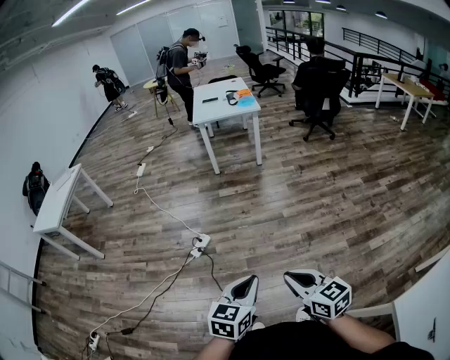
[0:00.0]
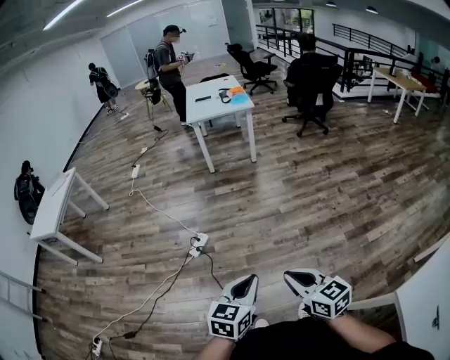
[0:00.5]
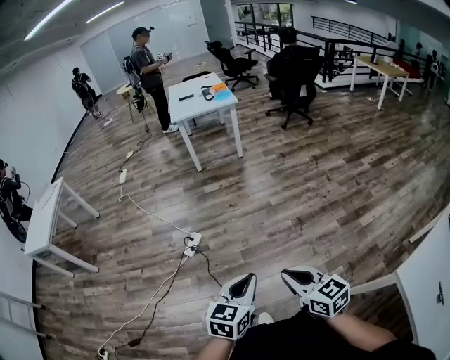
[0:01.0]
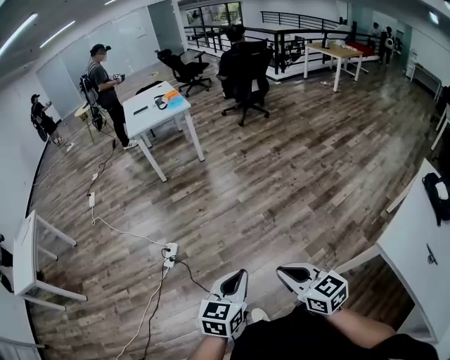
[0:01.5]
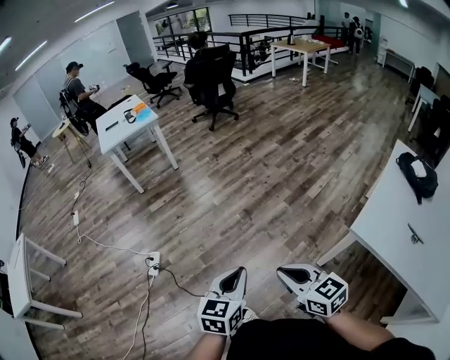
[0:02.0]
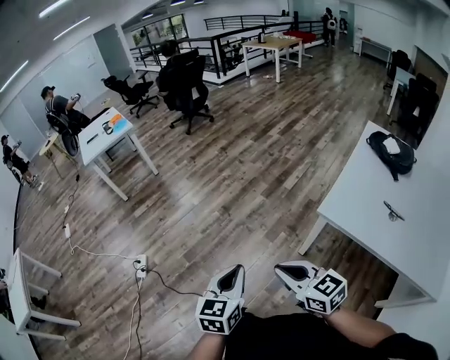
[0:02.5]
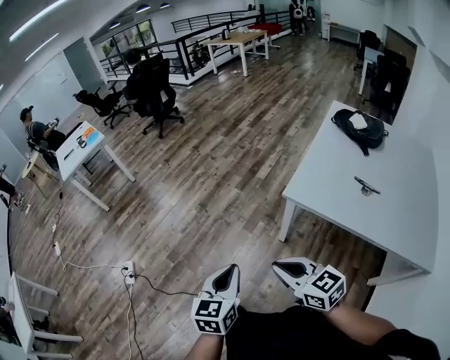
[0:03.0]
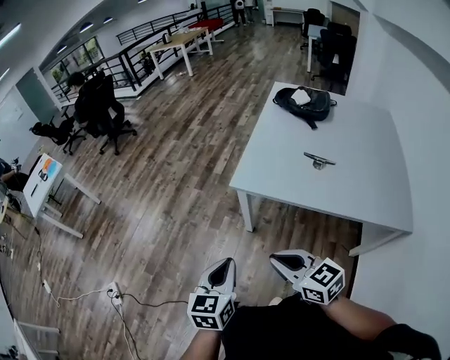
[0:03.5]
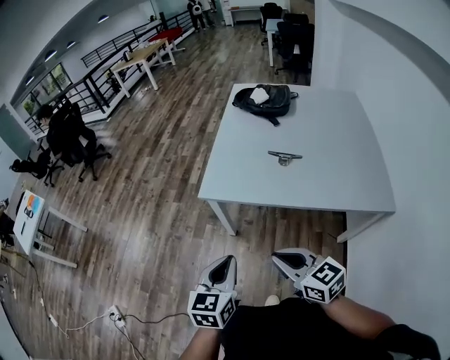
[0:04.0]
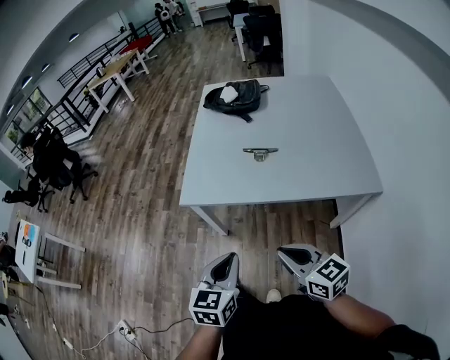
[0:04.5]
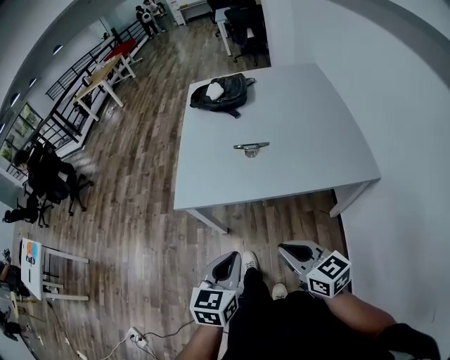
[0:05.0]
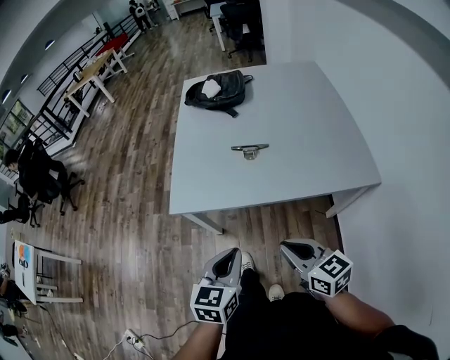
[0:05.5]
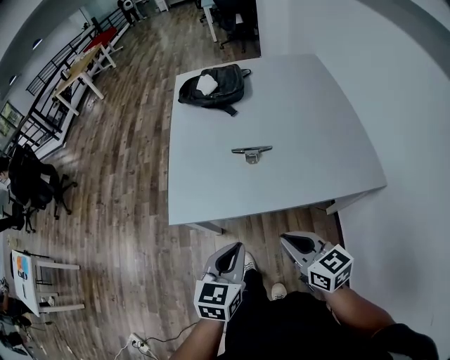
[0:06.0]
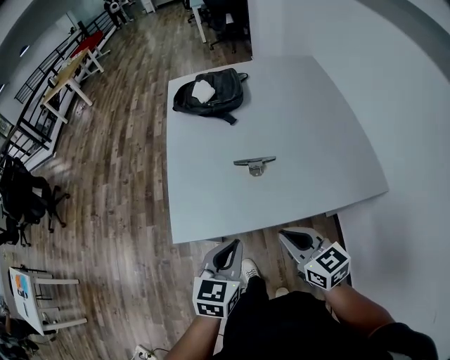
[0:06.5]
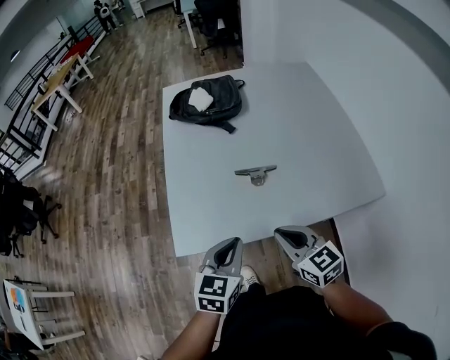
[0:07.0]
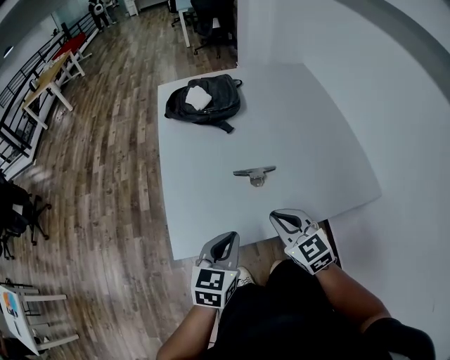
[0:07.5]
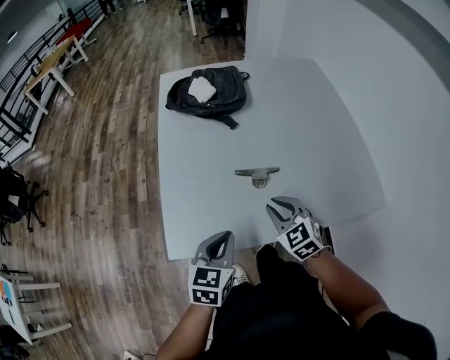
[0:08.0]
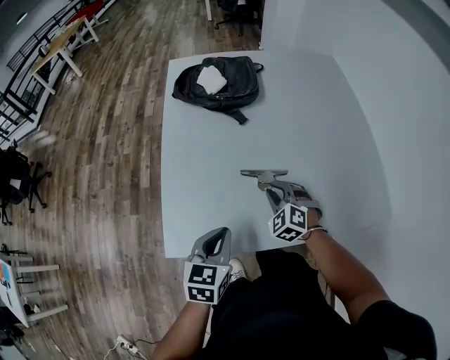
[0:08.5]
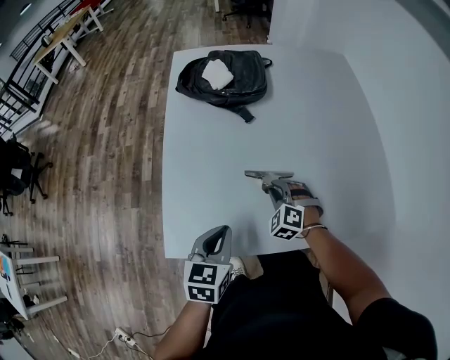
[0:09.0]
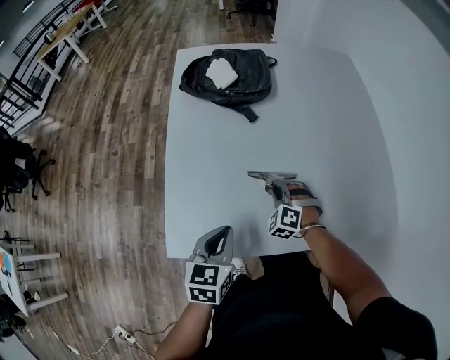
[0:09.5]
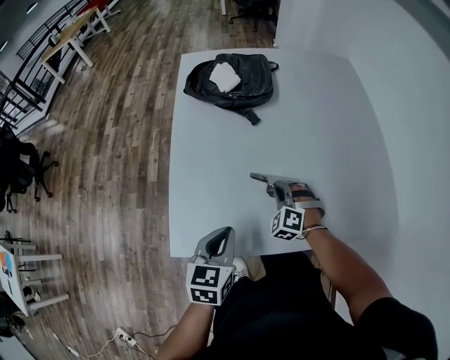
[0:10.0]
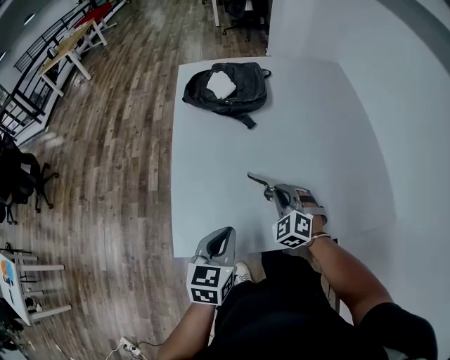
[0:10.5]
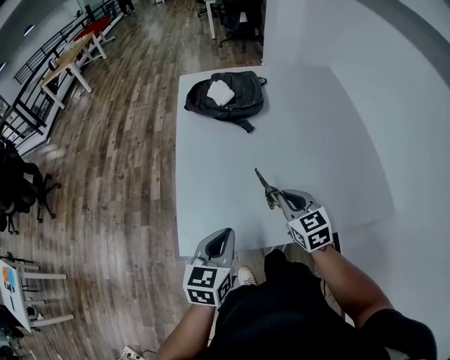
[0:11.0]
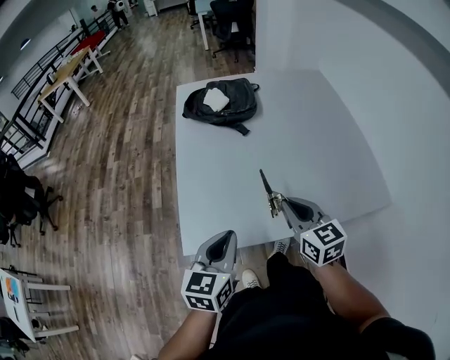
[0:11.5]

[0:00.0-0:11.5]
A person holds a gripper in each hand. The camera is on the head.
0:00.0 to 0:02.0: The right gripper changes place by roughly 20 cm, and changes its angle by some 30 degrees. Meanwhile the left gripper changes place by about 15 cm, and rotates about 30 degrees.
0:02.0 to 0:04.0: The two grippers travel together, roughly 50 cm. The left gripper swivels approximately 40 degrees. Meanwhile the right gripper turns by about 40 degrees.
0:04.0 to 0:06.0: Both grippers travel together forward and to the right, about 15 cm. The left gripper swivels some 20 degrees. The right gripper rotates about 20 degrees.
0:06.0 to 0:07.5: The two grippers go some 15 cm forward and to the left. The right gripper changes its angle by roughly 30 degrees.
0:07.5 to 0:09.5: The right gripper goes about 25 cm downward and forward, and twists roughly 50 degrees counterclockwise, seen from behind. Meanwhile the left gripper moves forward and downward, about 10 cm.
0:09.5 to 0:11.5: The right gripper heads upward and backward, covering some 25 cm, and rotates around the line of its fingers by some 70 degrees, clockwise from behind; the left gripper is displaced upward and backward by some 15 cm.

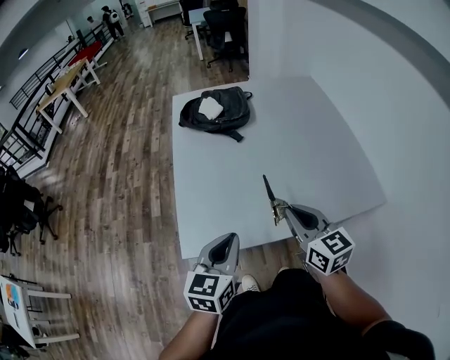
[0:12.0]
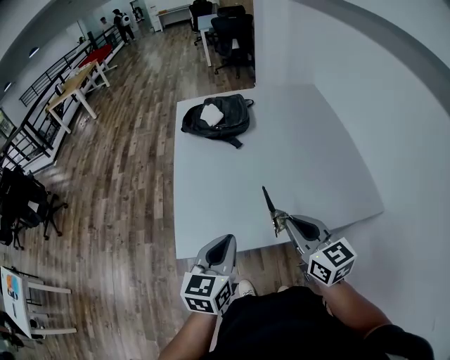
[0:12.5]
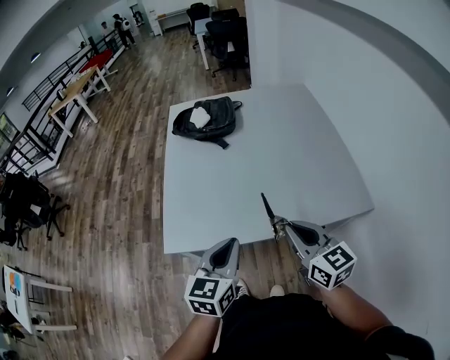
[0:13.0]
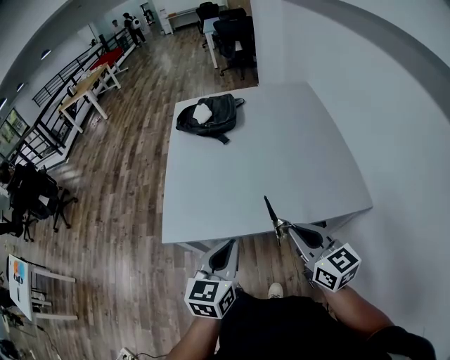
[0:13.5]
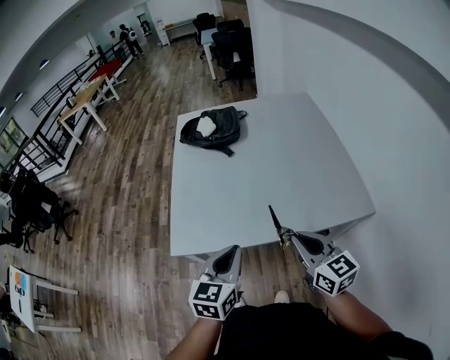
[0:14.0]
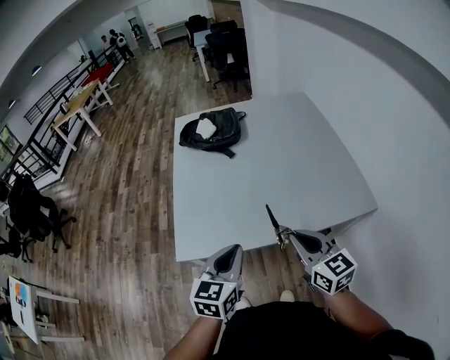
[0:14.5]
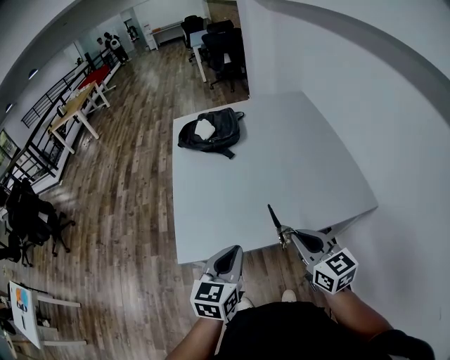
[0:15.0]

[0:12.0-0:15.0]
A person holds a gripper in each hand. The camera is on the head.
0:12.0 to 0:13.5: The grippers both shift to the right and backward by roughly 15 cm.
0:13.5 to 0:15.0: Both grippers move to the left, some 5 cm.

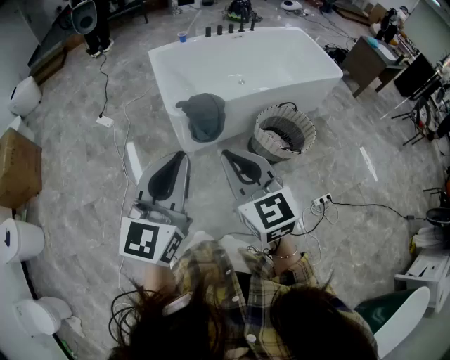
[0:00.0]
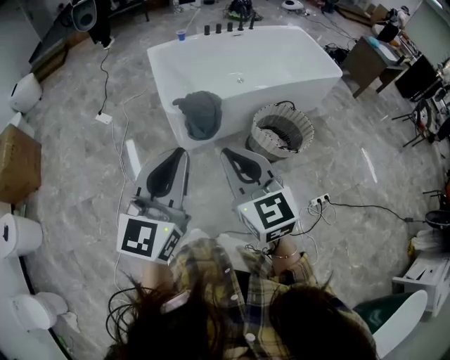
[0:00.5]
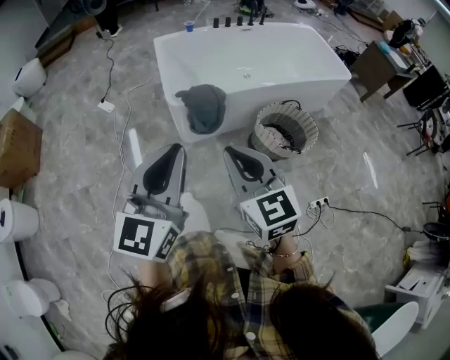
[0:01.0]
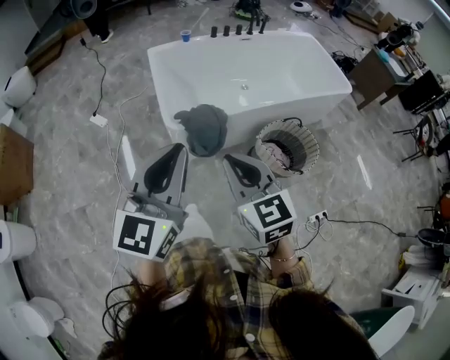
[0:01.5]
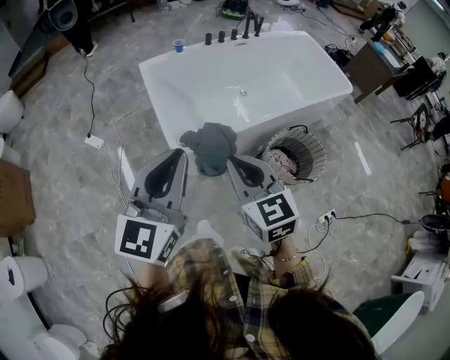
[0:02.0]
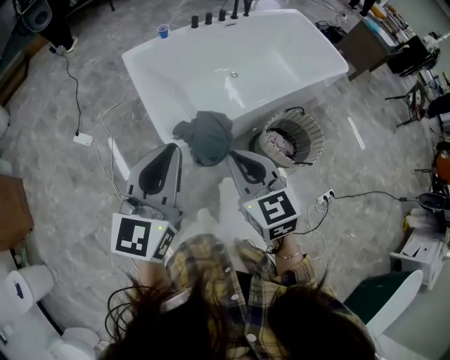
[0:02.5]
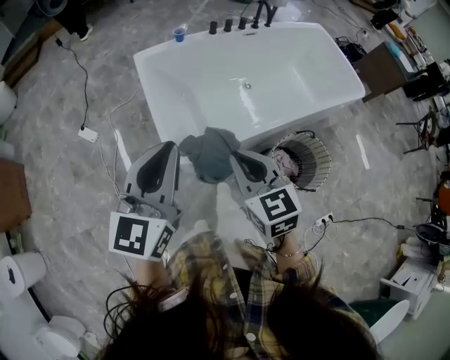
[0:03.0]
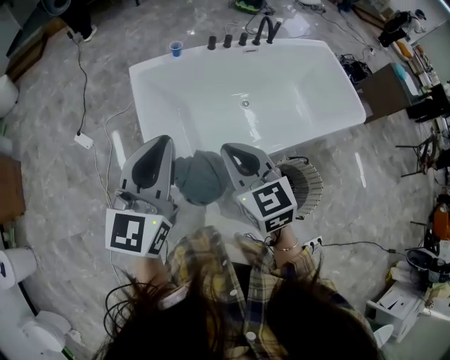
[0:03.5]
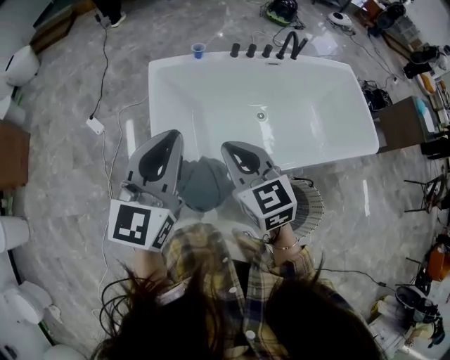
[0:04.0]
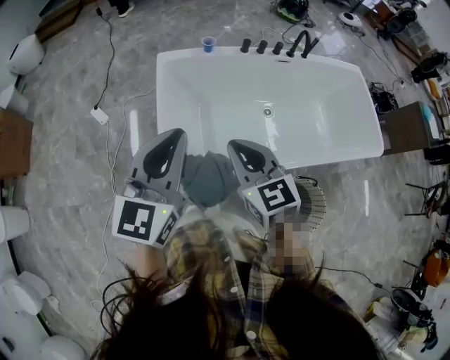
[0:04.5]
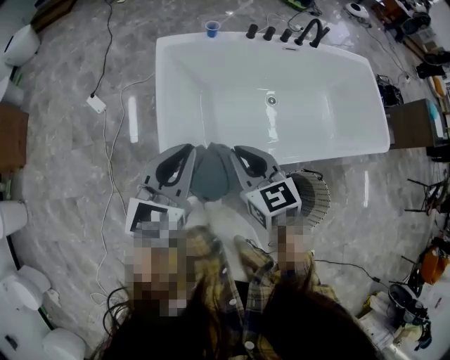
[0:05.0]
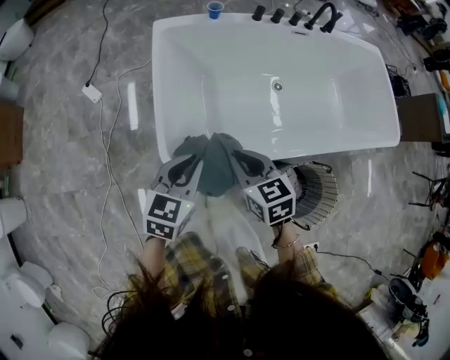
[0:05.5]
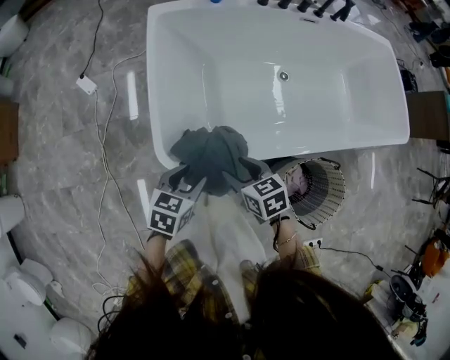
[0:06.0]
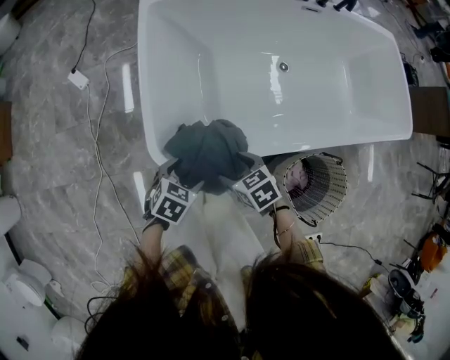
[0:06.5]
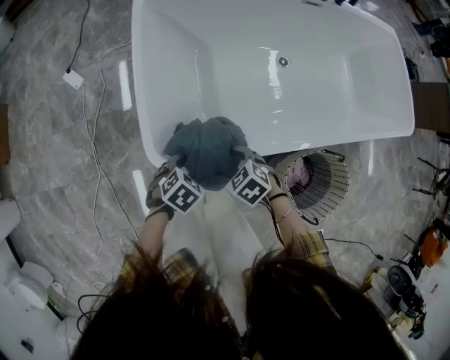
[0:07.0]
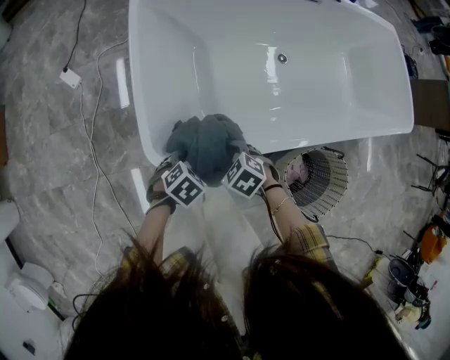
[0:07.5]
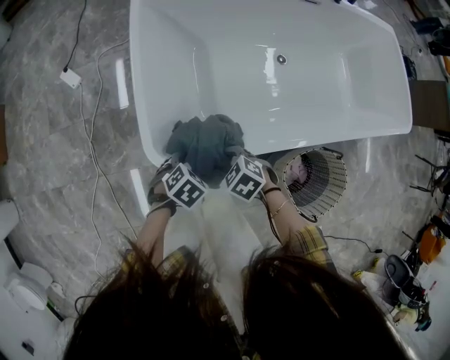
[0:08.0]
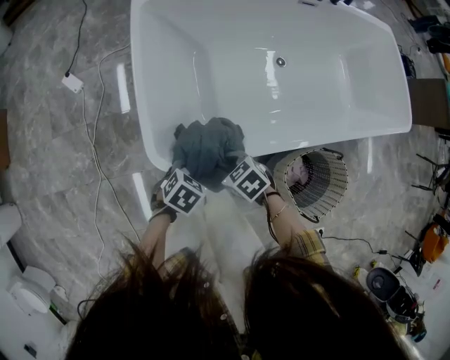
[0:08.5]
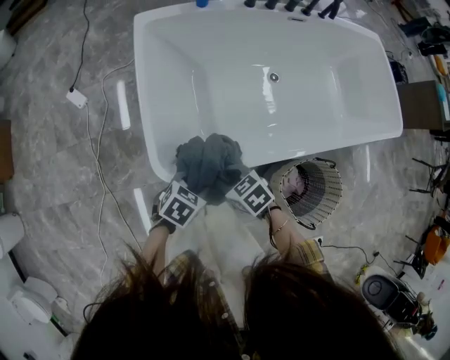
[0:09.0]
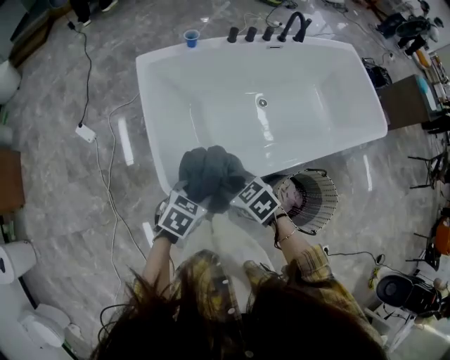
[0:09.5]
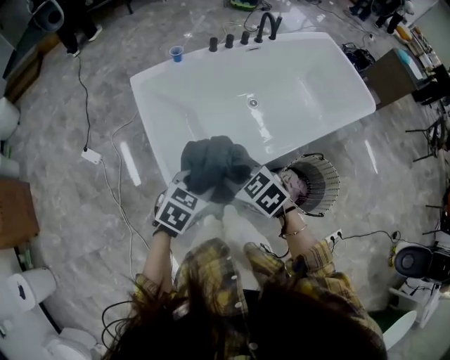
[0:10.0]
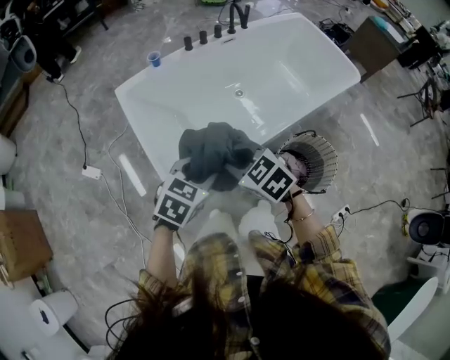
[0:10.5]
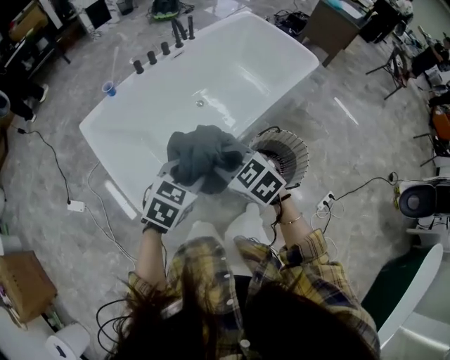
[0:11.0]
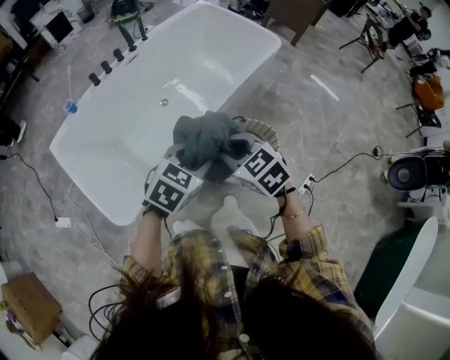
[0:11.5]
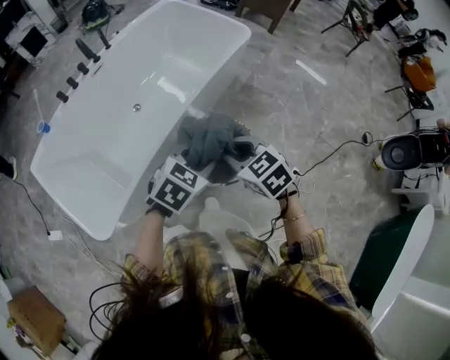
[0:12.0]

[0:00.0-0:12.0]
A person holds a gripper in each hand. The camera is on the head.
0:00.0 to 0:02.0: Both grippers move forward, roughly 25 cm.
0:02.0 to 0:04.0: The two grippers go some 30 cm forward.
0:04.0 to 0:06.0: Both grippers travel together downward, about 40 cm. The left gripper tips its fingers downward by roughly 50 degrees, and opens its fingers. The right gripper swivels approximately 40 degrees, and opens.
0:06.0 to 0:08.0: The grippers both shift downward by about 10 cm. The right gripper turns by approximately 40 degrees. The left gripper changes its angle by approximately 40 degrees, and opens its fingers.
0:08.0 to 0:10.0: Both grippers travel together upward, roughly 30 cm. The right gripper turns by approximately 30 degrees, while the left gripper rotates about 30 degrees, and closes its fingers.
0:10.0 to 0:12.0: Both grippers are carried some 50 cm. The right gripper changes its angle by about 40 degrees. Meanwhile the left gripper rotates some 40 degrees.
